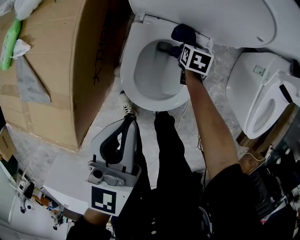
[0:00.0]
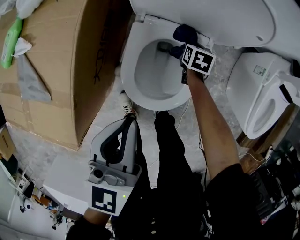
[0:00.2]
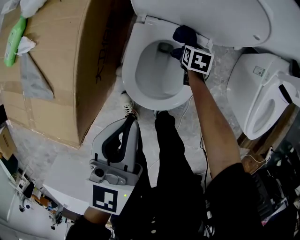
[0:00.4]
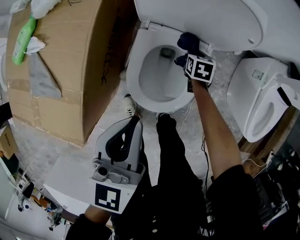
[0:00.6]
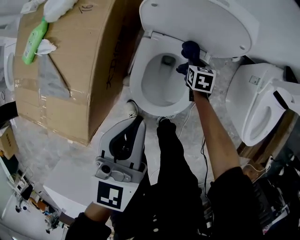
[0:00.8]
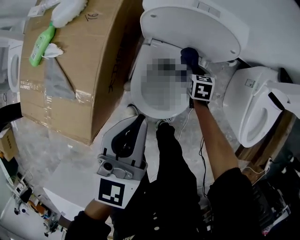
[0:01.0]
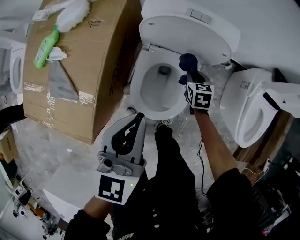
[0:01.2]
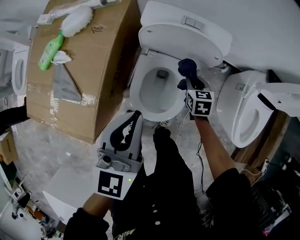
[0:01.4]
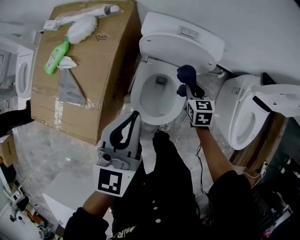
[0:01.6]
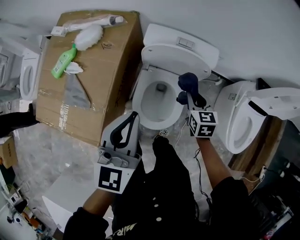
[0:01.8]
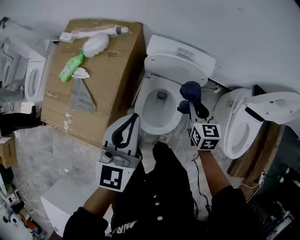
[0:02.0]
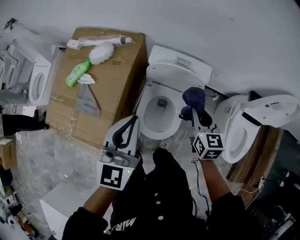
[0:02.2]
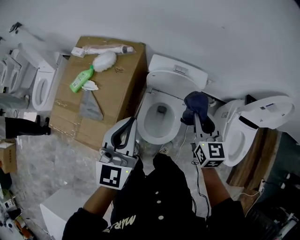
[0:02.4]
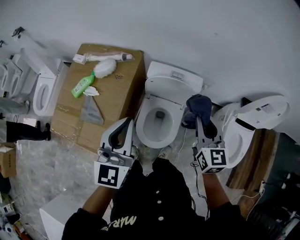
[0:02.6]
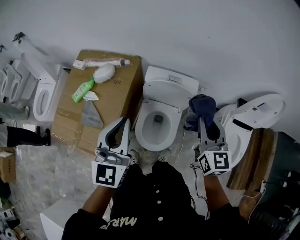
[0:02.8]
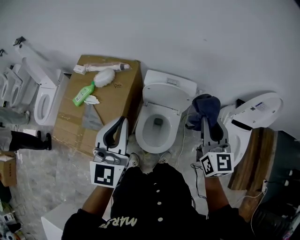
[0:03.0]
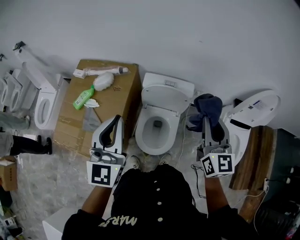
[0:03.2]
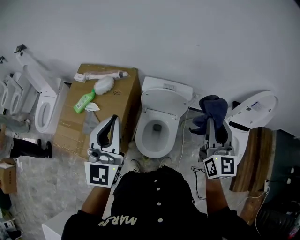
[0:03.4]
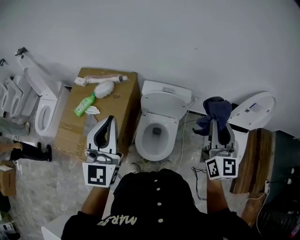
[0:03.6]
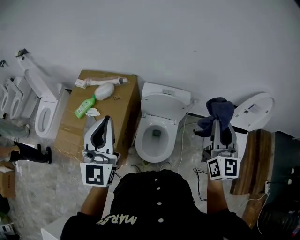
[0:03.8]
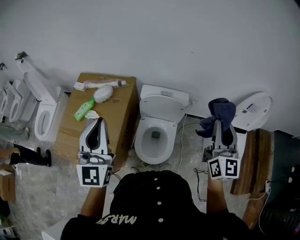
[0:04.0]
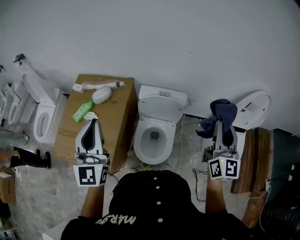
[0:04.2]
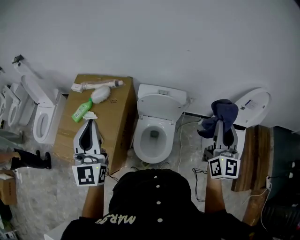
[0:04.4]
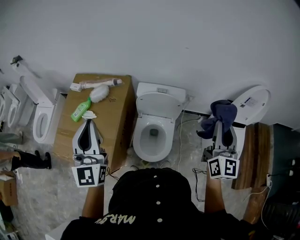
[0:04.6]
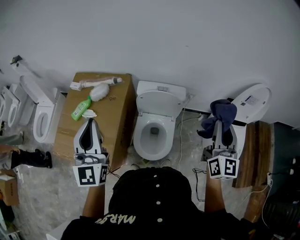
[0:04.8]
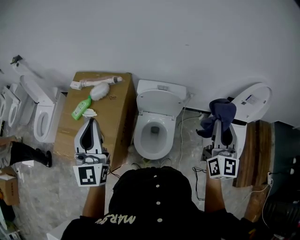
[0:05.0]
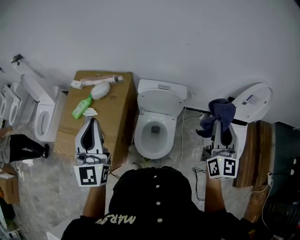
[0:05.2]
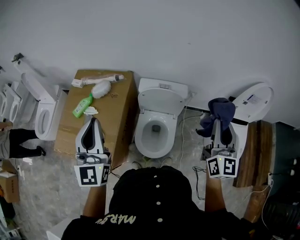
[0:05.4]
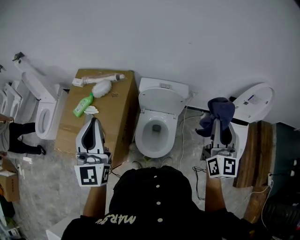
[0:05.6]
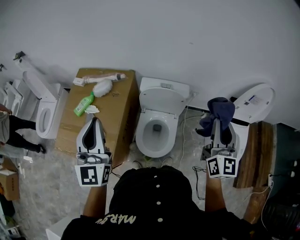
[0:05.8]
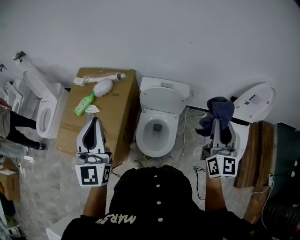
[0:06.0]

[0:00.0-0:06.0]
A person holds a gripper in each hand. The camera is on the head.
0.0 to 1.6 s: The two grippers go about 20 cm upward. The right gripper swivels approximately 20 degrees.
1.6 to 3.0 s: The left gripper moves upward, about 20 cm. Meanwhile the right gripper goes some 40 cm upward, and tilts its fingers some 40 degrees upward.
3.0 to 4.4 s: The right gripper is displaced to the right, upward and backward by roughly 10 cm, and changes its angle by some 20 degrees; the left gripper shifts approximately 10 cm to the left.
4.4 to 6.0 s: The grippers stay close to where they were, moving slightly.

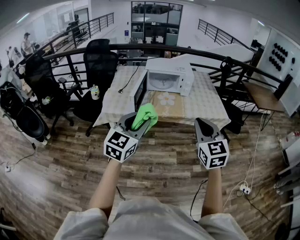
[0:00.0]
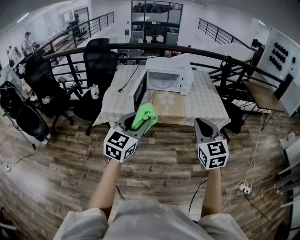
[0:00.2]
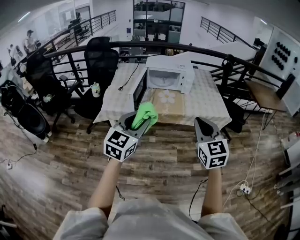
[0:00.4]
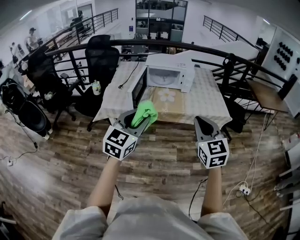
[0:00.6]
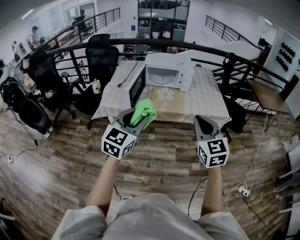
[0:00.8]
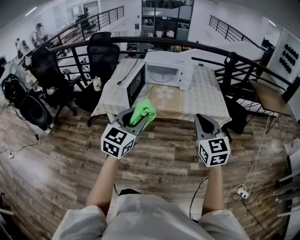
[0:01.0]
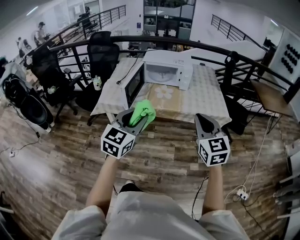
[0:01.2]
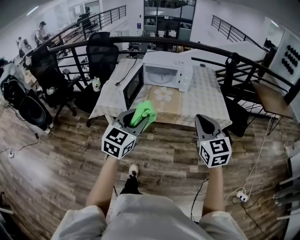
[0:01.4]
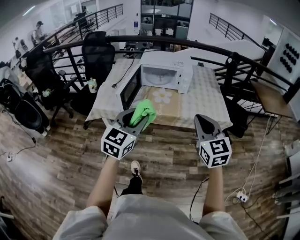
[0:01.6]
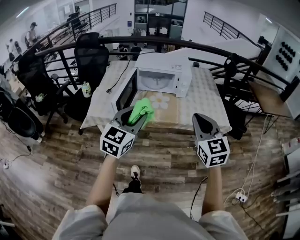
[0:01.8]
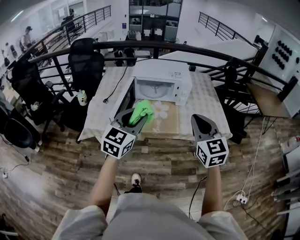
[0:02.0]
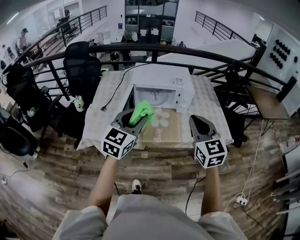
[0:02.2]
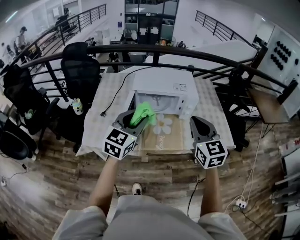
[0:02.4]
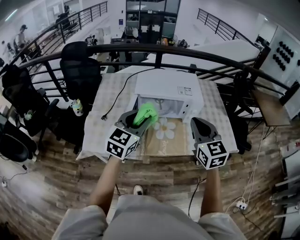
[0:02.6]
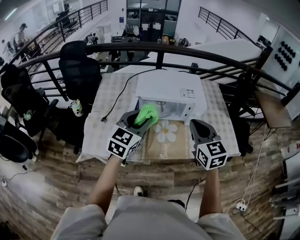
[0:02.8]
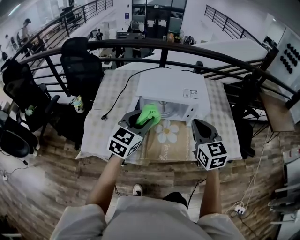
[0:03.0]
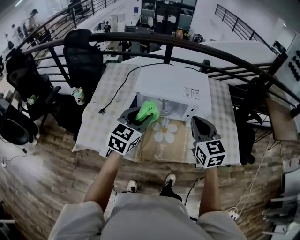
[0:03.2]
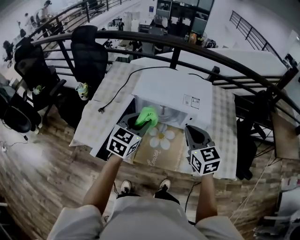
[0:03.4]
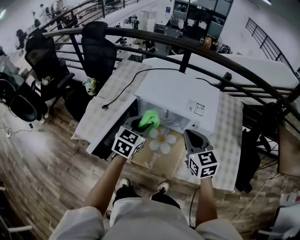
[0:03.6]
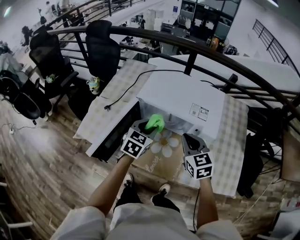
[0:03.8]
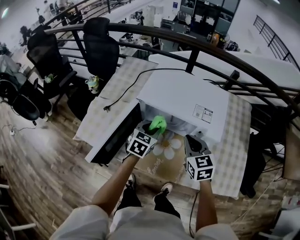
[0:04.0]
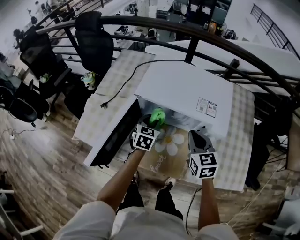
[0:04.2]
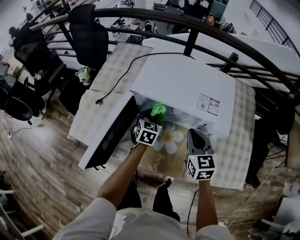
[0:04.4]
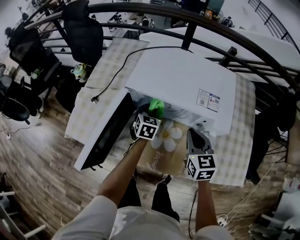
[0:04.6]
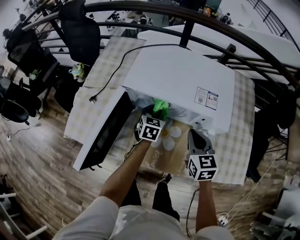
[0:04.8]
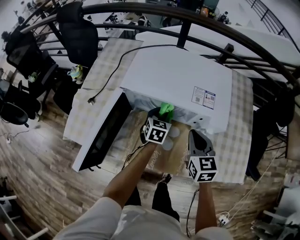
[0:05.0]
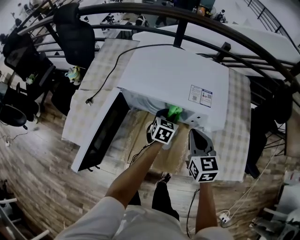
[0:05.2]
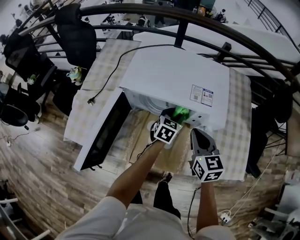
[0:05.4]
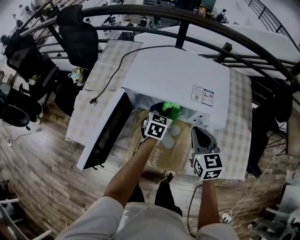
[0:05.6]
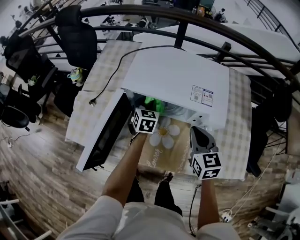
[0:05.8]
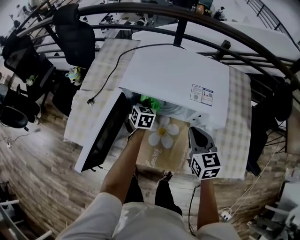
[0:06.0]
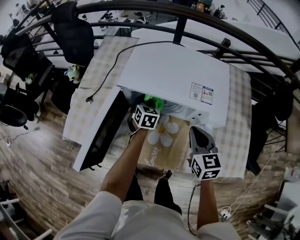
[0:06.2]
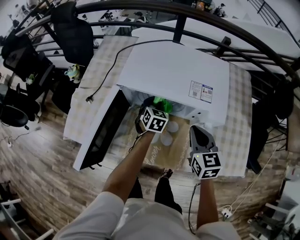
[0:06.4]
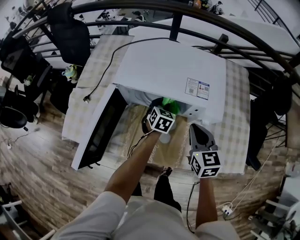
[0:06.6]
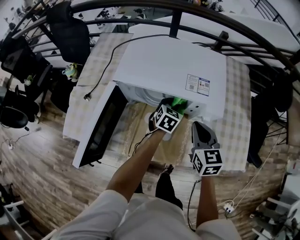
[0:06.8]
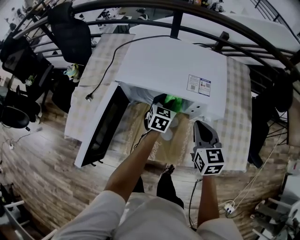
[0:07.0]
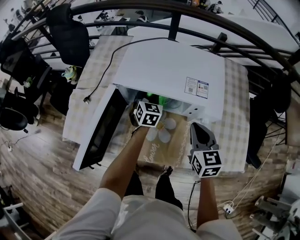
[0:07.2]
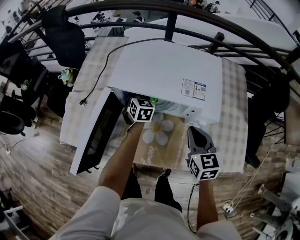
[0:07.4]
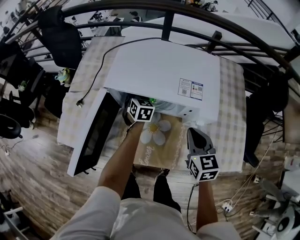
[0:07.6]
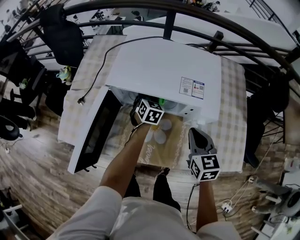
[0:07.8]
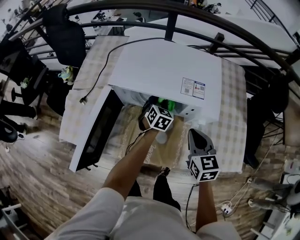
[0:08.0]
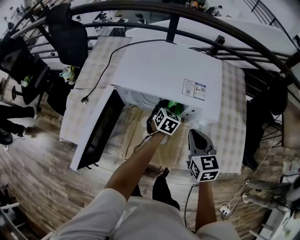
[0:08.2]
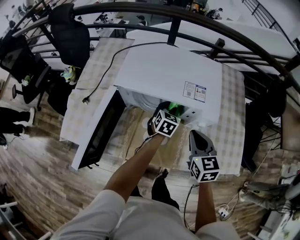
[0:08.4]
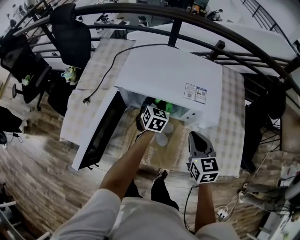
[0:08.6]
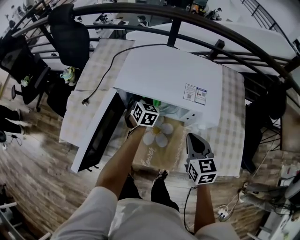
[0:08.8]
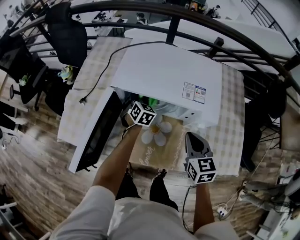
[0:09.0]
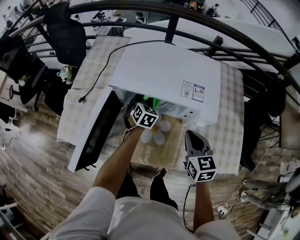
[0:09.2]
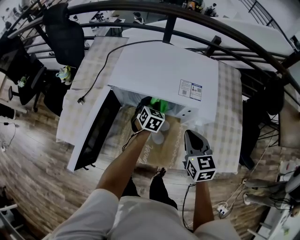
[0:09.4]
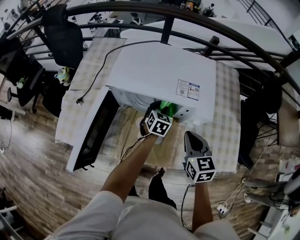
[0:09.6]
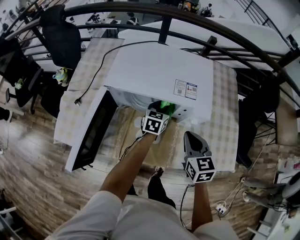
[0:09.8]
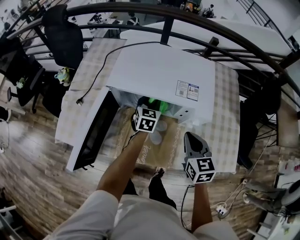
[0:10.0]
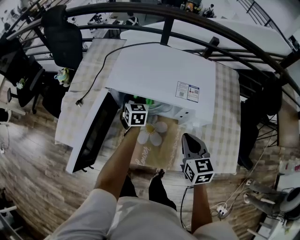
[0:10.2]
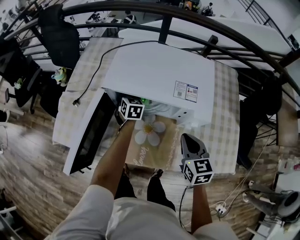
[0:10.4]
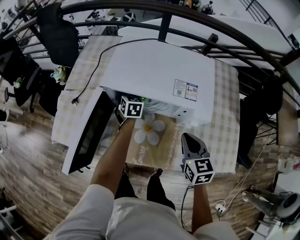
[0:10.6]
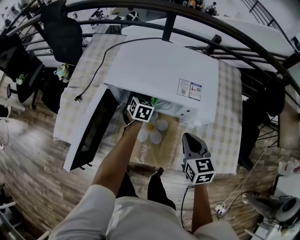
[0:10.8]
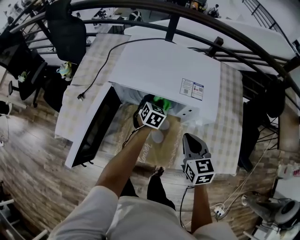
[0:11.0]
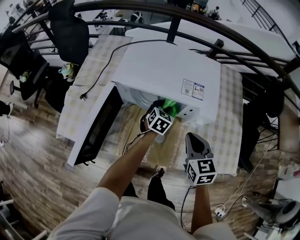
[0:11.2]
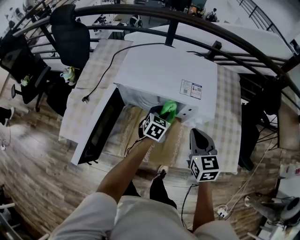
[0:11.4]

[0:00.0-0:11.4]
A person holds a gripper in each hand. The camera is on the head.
0.0 to 1.4 s: The right gripper moves to the right and forward, roughly 10 cm. Meanwhile the left gripper moves to the right, roughly 10 cm.
1.4 to 2.8 s: The two grippers travel together, forward, roughly 40 cm.
2.8 to 4.2 s: Both grippers move downward and forward, some 30 cm. The left gripper turns by approximately 40 degrees.
4.2 to 5.6 s: The left gripper is displaced to the right by approximately 10 cm.
5.6 to 7.2 s: The left gripper moves left and right over some 20 cm, changing direction 2 times.
7.2 to 8.6 s: The left gripper goes to the right and returns, approximately 10 cm each way.
8.6 to 10.0 s: The left gripper swings left and right, approximately 15 cm each way, with 2 reversals.
10.0 to 11.4 s: The left gripper shifts roughly 5 cm backward, and travels to the left and back again, about 10 cm each way.

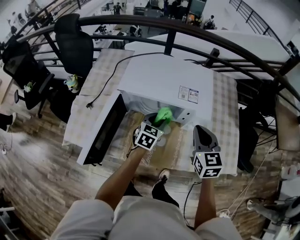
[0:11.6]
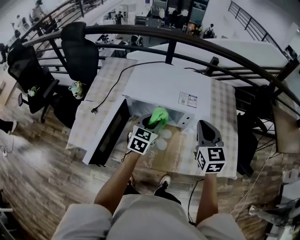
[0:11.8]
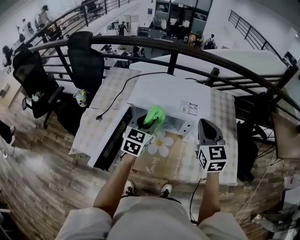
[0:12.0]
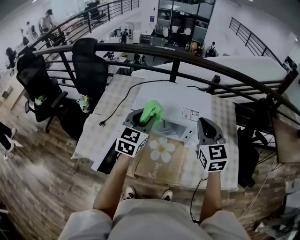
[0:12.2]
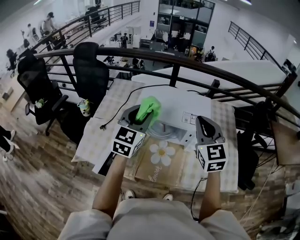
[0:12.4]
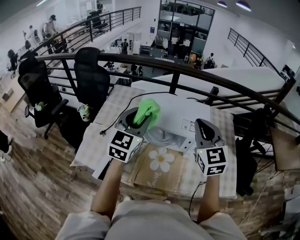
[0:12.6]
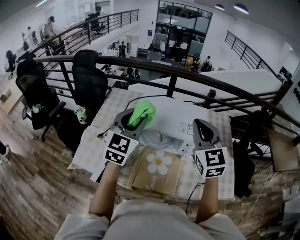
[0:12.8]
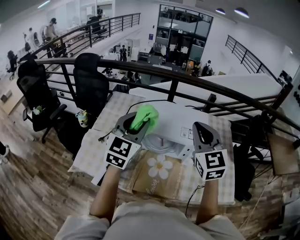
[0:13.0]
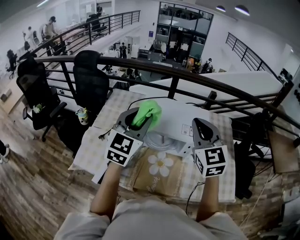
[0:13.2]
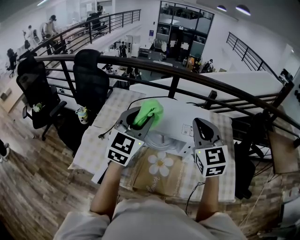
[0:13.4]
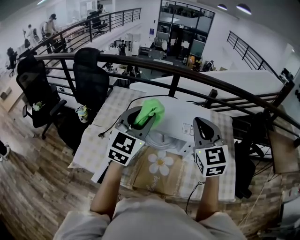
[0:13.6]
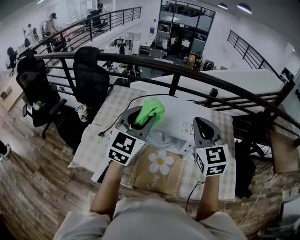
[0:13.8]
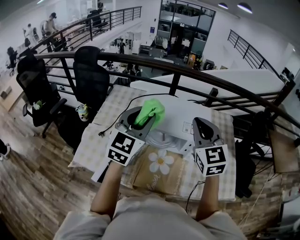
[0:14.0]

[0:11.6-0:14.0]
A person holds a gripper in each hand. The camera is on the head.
11.6 to 12.8 s: The left gripper shifts about 35 cm upward and to the left, and swivels some 30 degrees. Meanwhile the right gripper shifts approximately 20 cm upward and to the left, and changes its angle by some 20 degrees.
12.8 to 14.0 s: There are only small adjustments of the grippers.

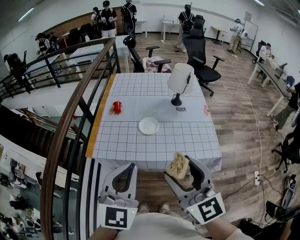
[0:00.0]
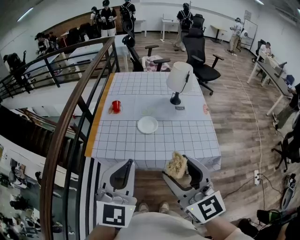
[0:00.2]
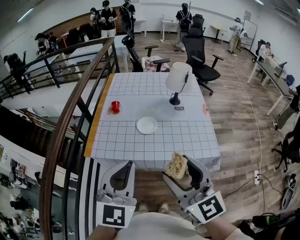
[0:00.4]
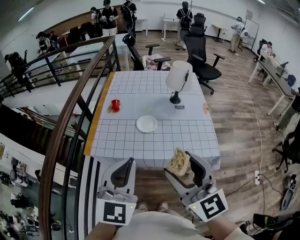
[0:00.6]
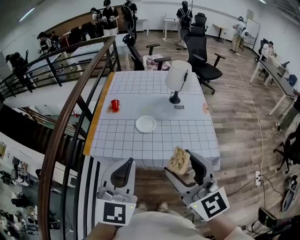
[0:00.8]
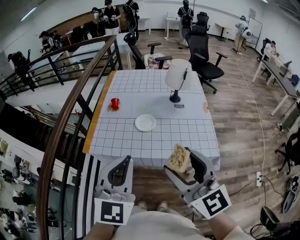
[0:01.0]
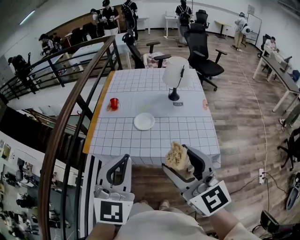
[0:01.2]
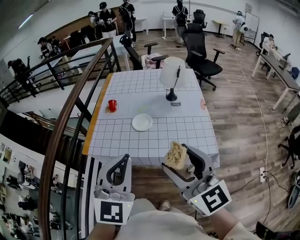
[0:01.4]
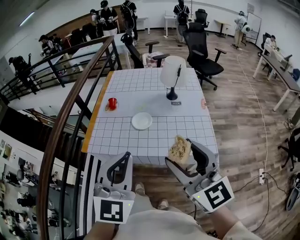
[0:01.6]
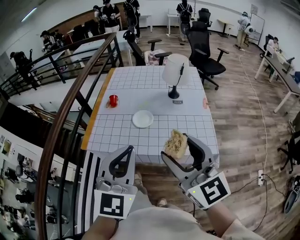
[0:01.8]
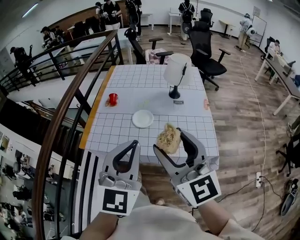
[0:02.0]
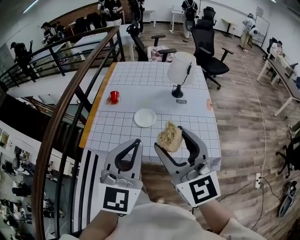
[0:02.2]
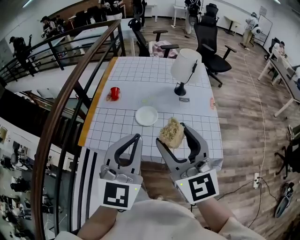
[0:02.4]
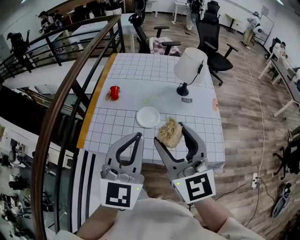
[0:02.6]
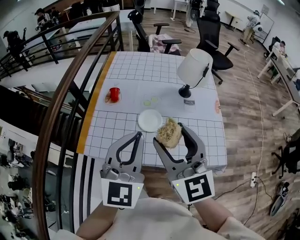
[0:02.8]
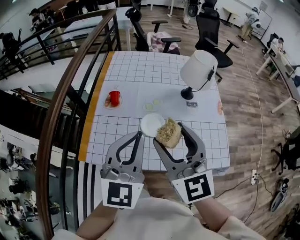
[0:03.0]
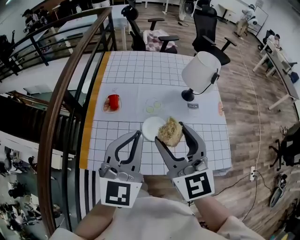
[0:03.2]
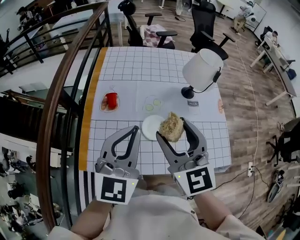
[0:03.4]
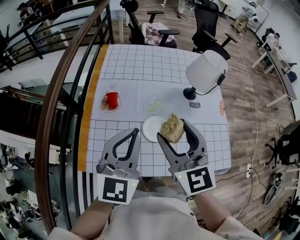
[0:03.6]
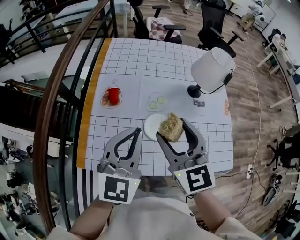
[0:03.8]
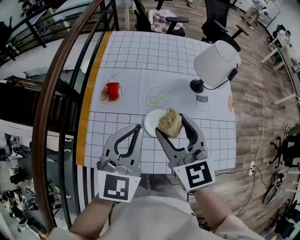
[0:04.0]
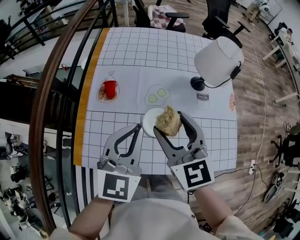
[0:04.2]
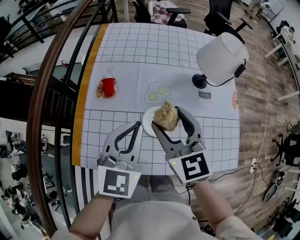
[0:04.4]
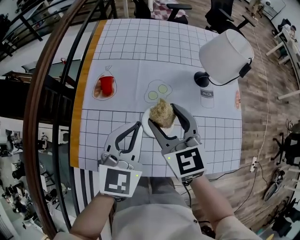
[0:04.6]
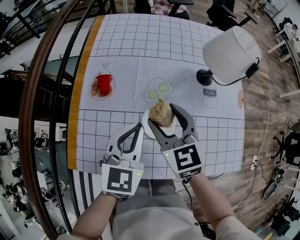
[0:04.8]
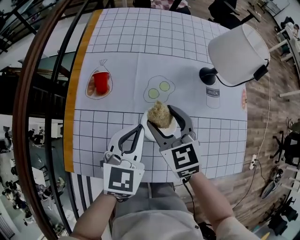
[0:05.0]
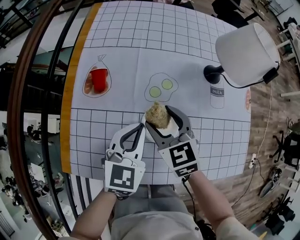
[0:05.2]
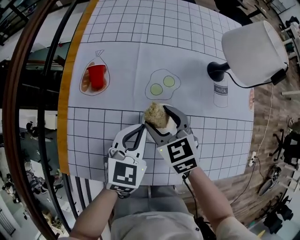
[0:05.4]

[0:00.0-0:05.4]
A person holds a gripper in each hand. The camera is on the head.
0.0 to 1.4 s: The two grippers go approximately 10 cm to the right.
1.4 to 2.8 s: The left gripper goes about 20 cm forward. Meanwhile the right gripper goes some 25 cm forward and to the left.
2.8 to 4.0 s: Both grippers move forward and downward, about 20 cm.
4.0 to 5.4 s: The two grippers go approximately 25 cm downward. The right gripper rotates approximately 30 degrees. The left gripper changes its angle by approximately 20 degrees.
